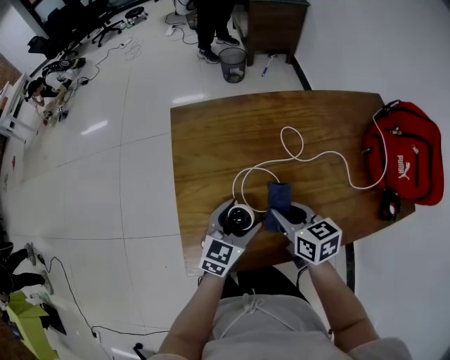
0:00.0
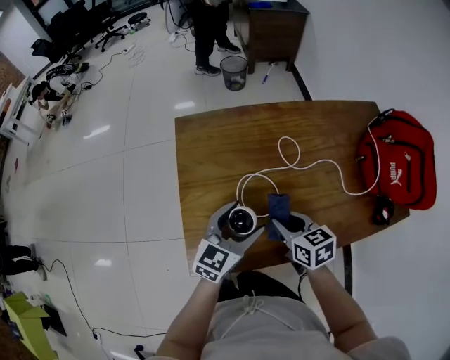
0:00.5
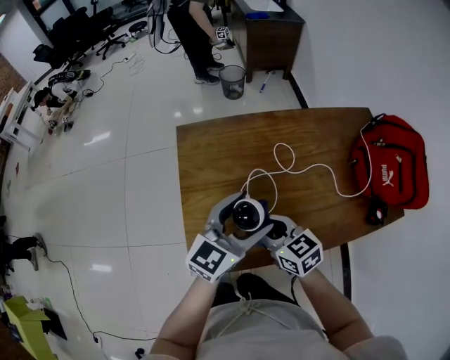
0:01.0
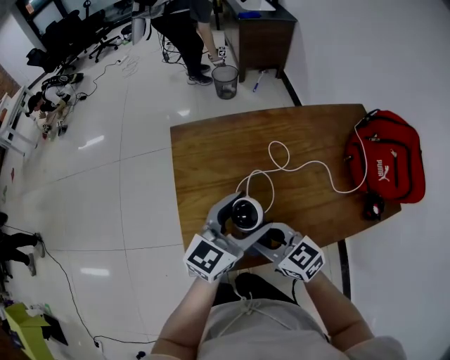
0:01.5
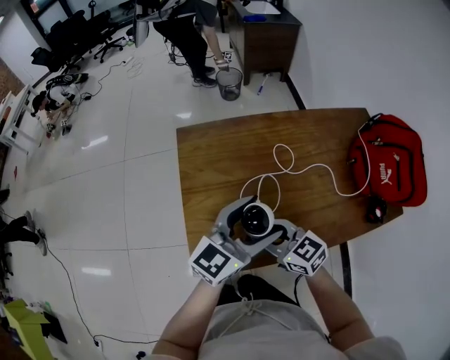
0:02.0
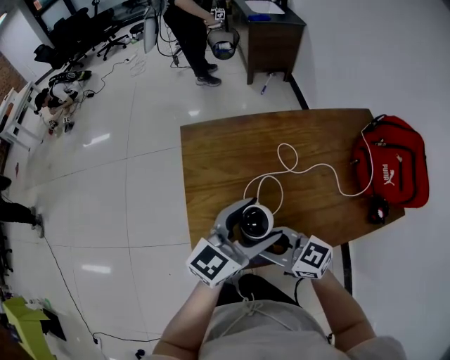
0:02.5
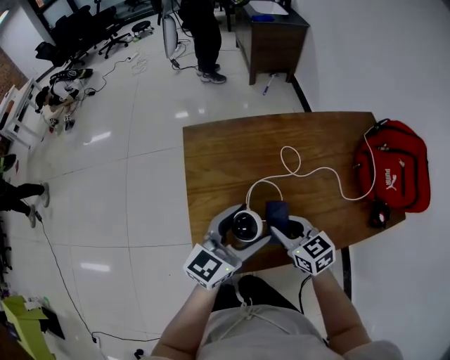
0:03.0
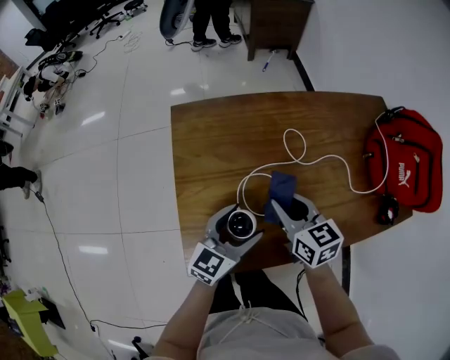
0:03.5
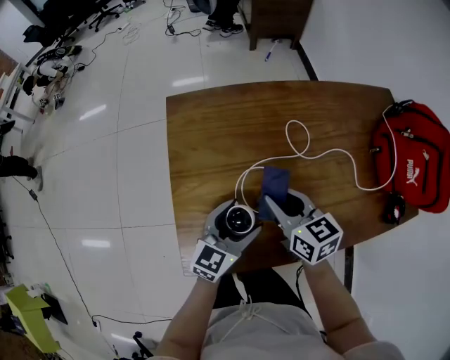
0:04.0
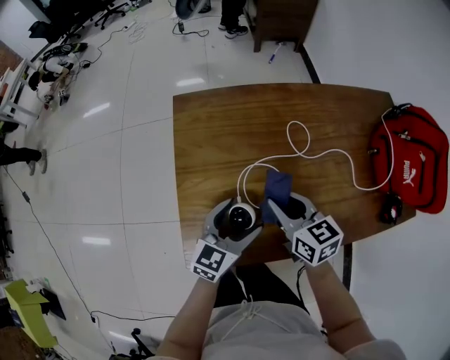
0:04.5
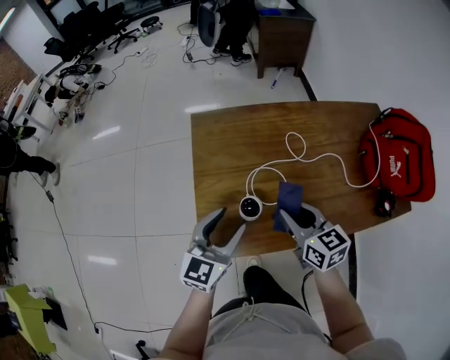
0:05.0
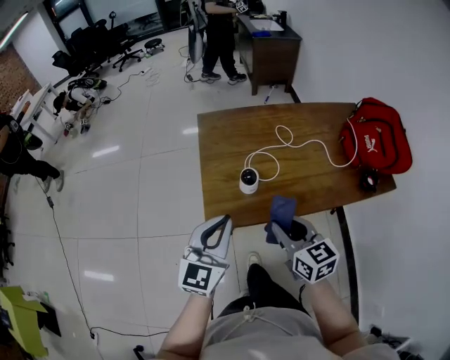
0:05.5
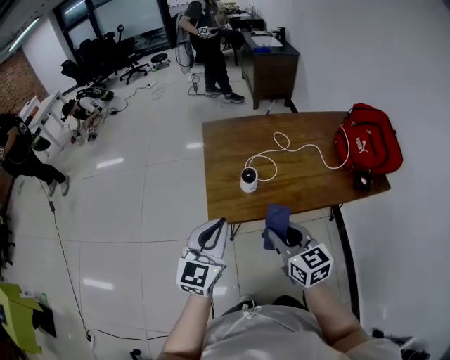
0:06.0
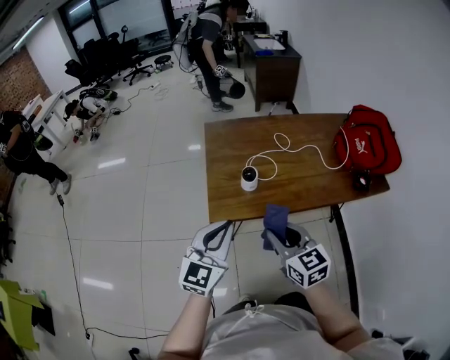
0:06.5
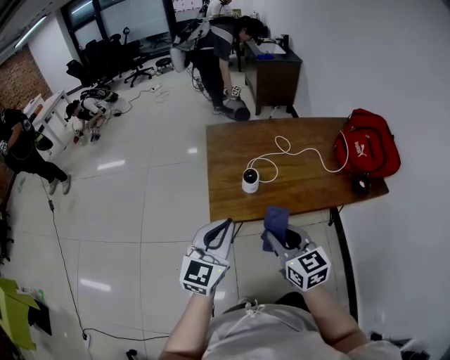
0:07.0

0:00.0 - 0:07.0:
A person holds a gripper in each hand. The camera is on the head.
0:00.0 - 0:02.0: The left gripper is displaced upward by roughly 20 cm, and turns by some 20 degrees. The right gripper heads upward, to the left and backward, covering approximately 10 cm, and changes its angle by roughly 30 degrees.
0:02.0 - 0:03.5: The right gripper is displaced forward and to the right by roughly 10 cm, and rotates roughly 30 degrees. Meanwhile the left gripper heads downward, covering roughly 15 cm.
0:03.5 - 0:05.0: The left gripper travels upward, to the left and backward by some 15 cm. The right gripper heads backward and upward, covering about 10 cm.
0:05.0 - 0:07.0: The right gripper is displaced backward by about 25 cm. The left gripper moves backward and upward, roughly 25 cm, and closes.

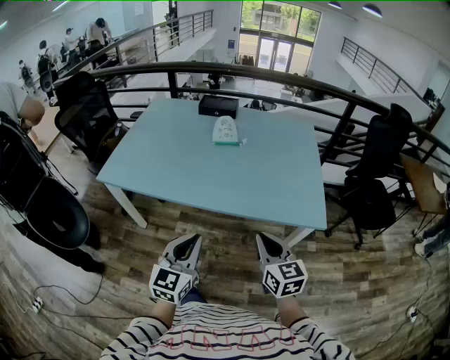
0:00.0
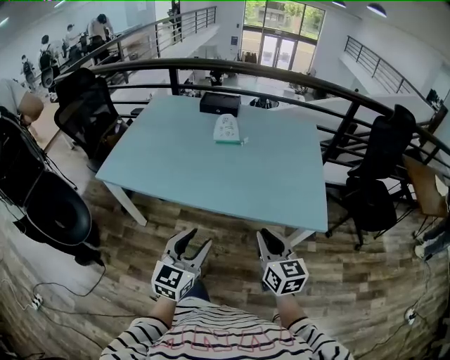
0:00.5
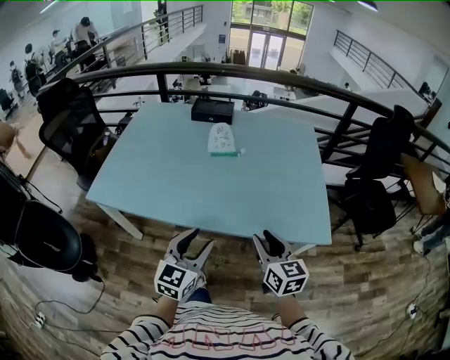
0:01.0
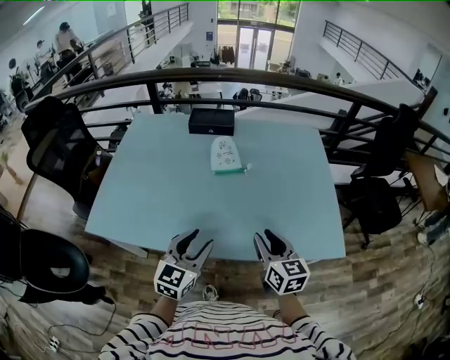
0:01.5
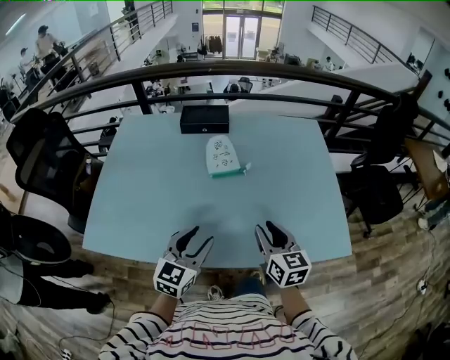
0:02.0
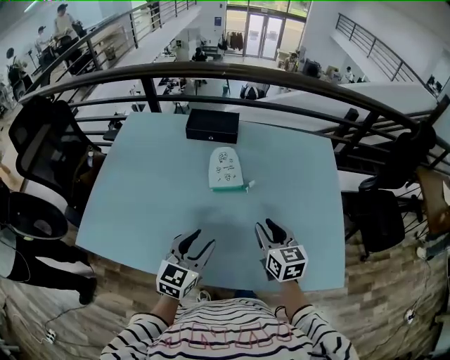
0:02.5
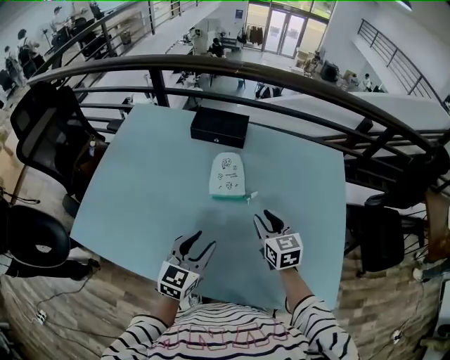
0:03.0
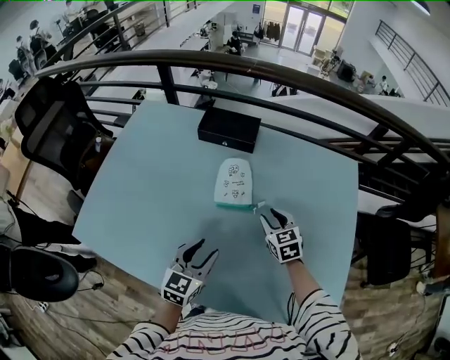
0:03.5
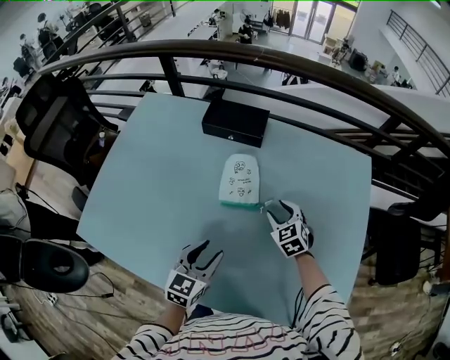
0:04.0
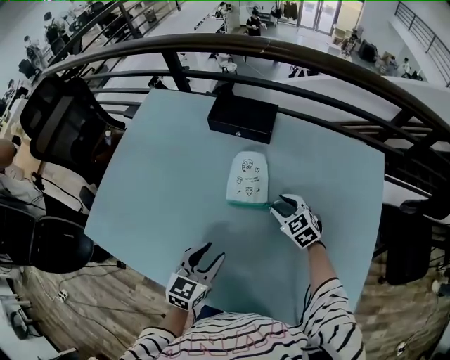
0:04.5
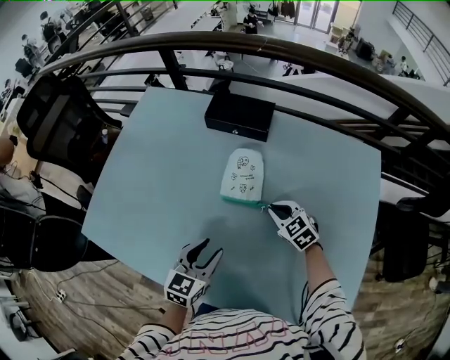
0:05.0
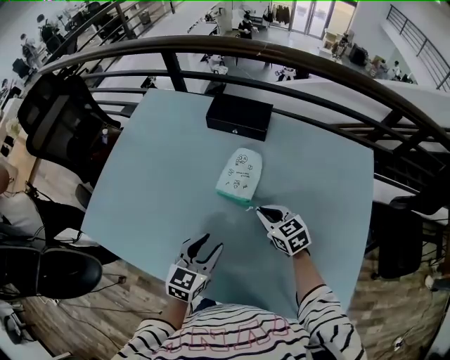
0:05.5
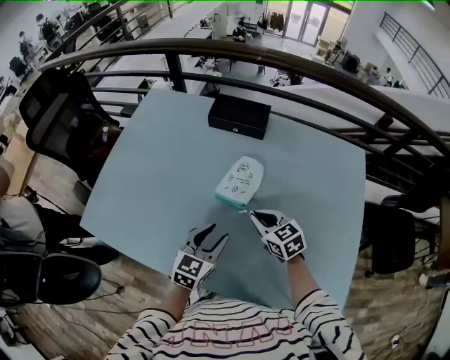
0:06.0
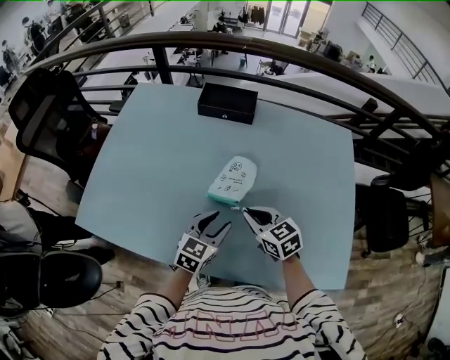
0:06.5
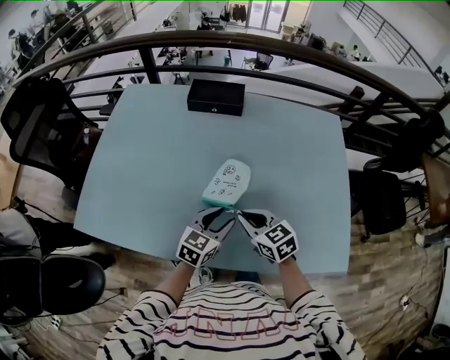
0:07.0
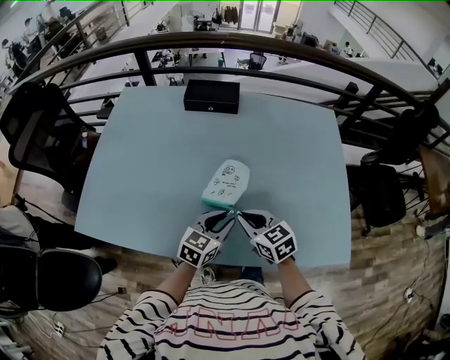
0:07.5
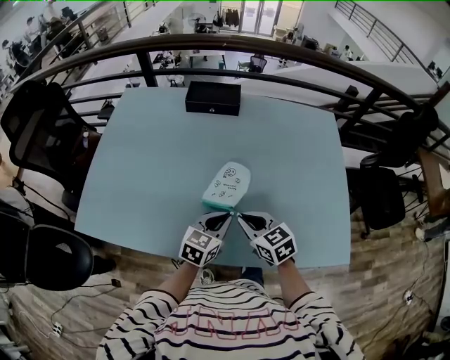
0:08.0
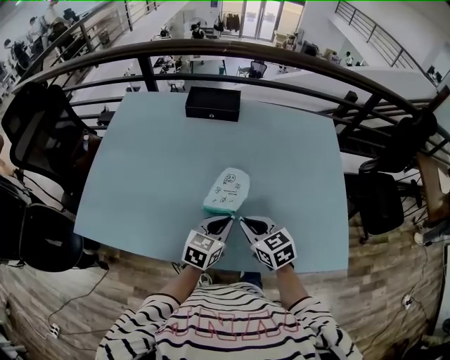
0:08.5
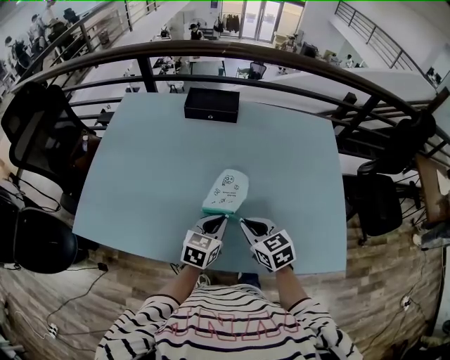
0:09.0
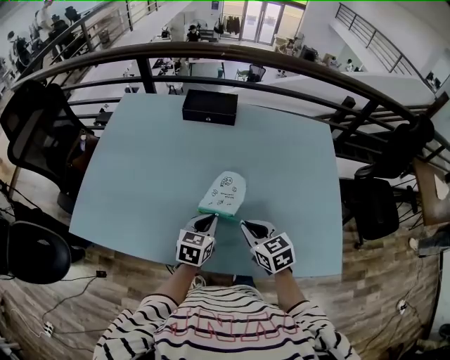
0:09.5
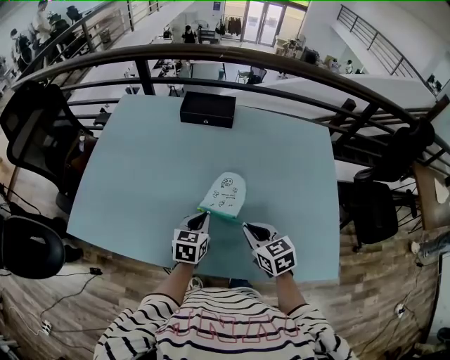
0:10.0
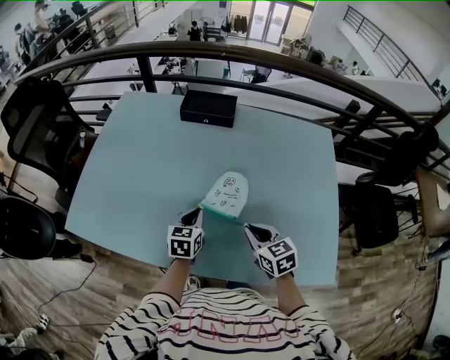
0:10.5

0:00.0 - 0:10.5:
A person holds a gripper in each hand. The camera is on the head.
0:00.0 - 0:02.0: Both grippers move forward, about 30 cm. The right gripper opens its fingers. Meanwhile the left gripper opens its fingers.
0:02.0 - 0:04.0: The left gripper goes approximately 20 cm forward and downward, and changes its angle by approximately 20 degrees. Meanwhile the right gripper travels forward and downward by about 35 cm, and turns by some 50 degrees.
0:04.0 - 0:06.5: The right gripper heads backward, to the left and upward, covering roughly 20 cm, rotates approximately 30 degrees, and closes.
0:06.5 - 0:08.5: The left gripper shifts by some 5 cm, and closes. Meanwhile the right gripper heads backward, covering some 10 cm.
0:08.5 - 0:10.5: The right gripper moves to the right, approximately 5 cm. Meanwhile the left gripper moves forward, roughly 5 cm, and rotates about 20 degrees.

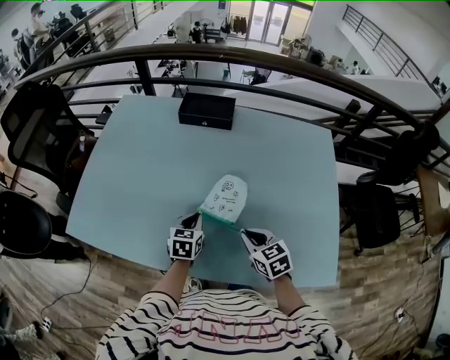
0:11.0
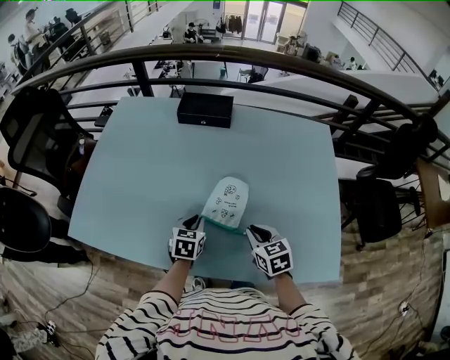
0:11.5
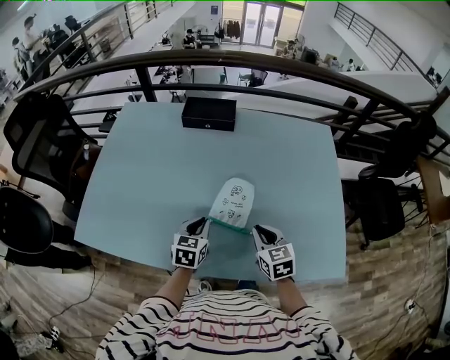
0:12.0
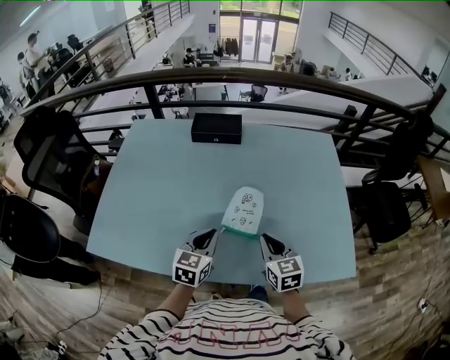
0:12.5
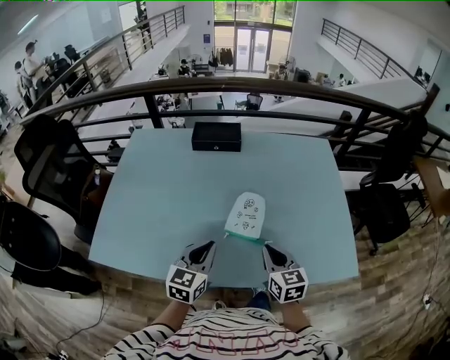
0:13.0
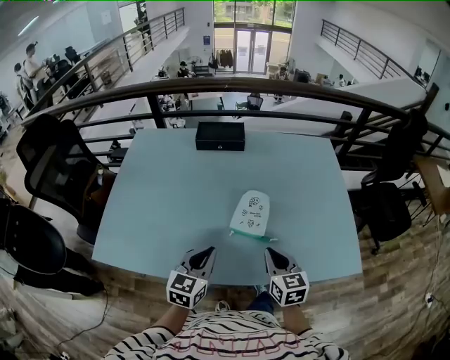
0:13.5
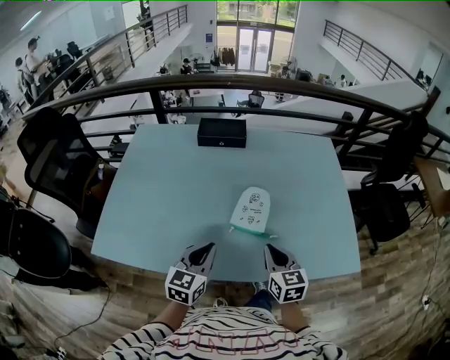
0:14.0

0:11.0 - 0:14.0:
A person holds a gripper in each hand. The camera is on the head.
0:11.0 - 0:12.5: The right gripper is displaced upward by about 5 cm, and swivels roughly 20 degrees. The left gripper moves upward and backward, approximately 10 cm.
0:12.5 - 0:14.0: The grippers both shift backward by roughly 5 cm.

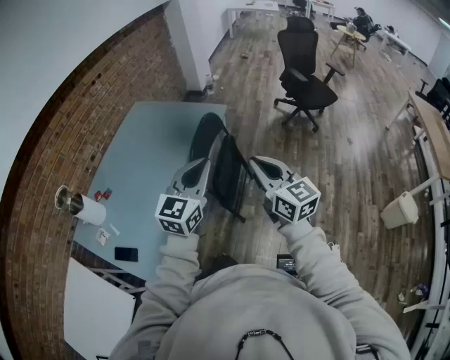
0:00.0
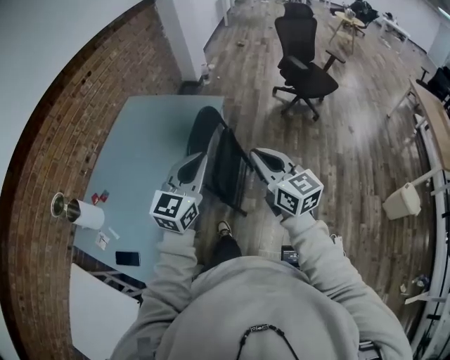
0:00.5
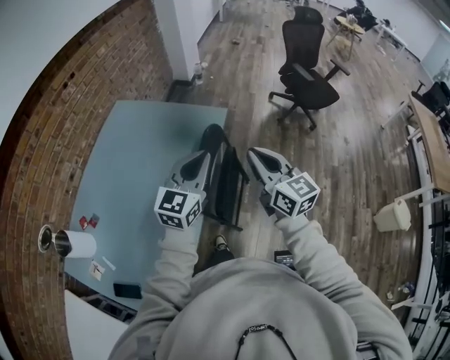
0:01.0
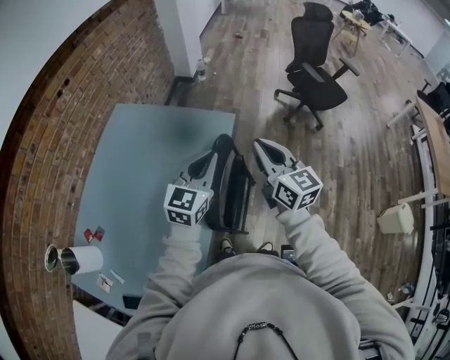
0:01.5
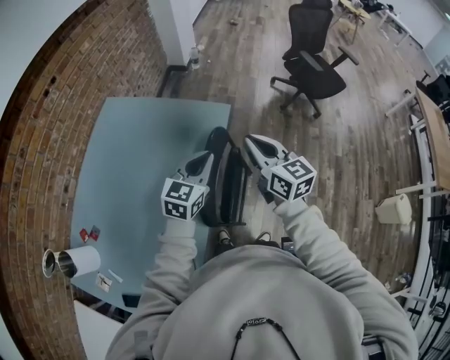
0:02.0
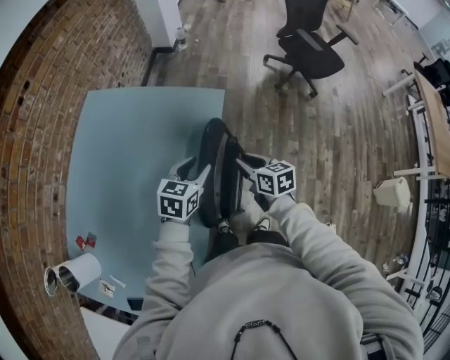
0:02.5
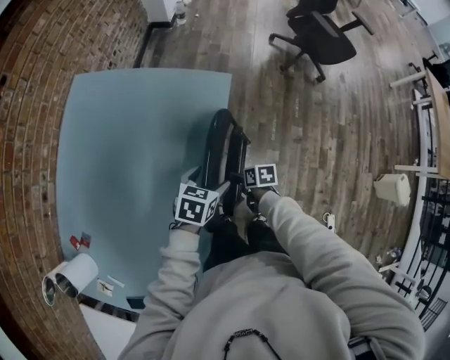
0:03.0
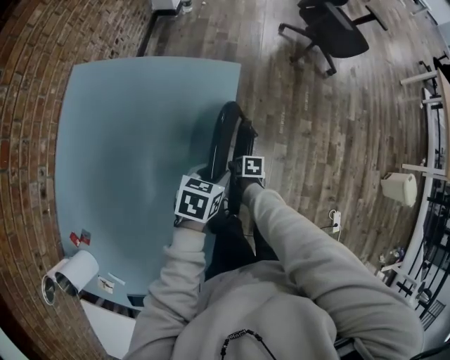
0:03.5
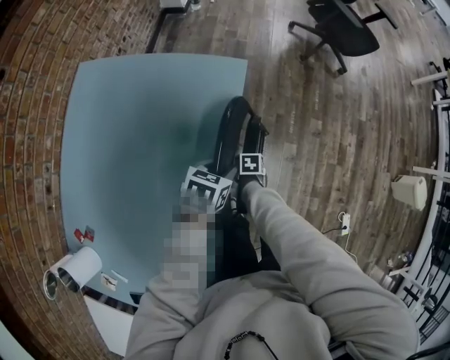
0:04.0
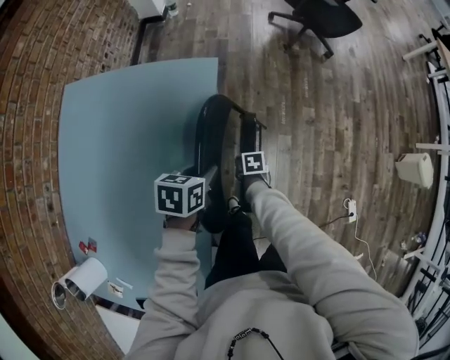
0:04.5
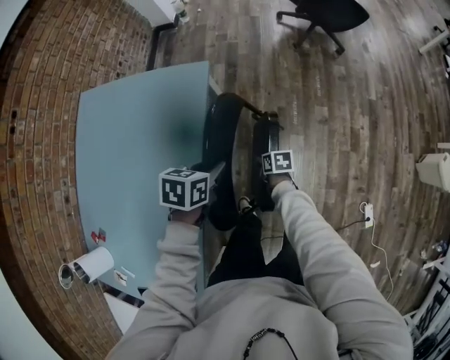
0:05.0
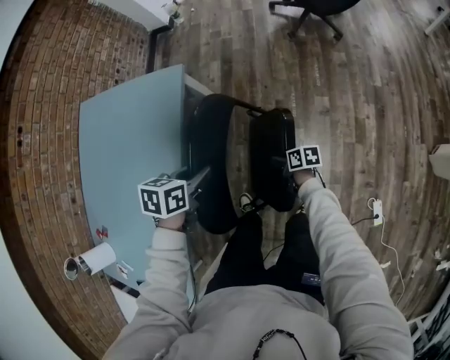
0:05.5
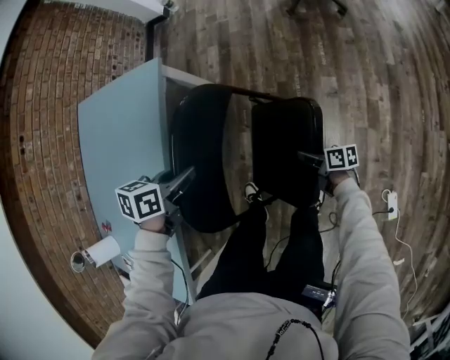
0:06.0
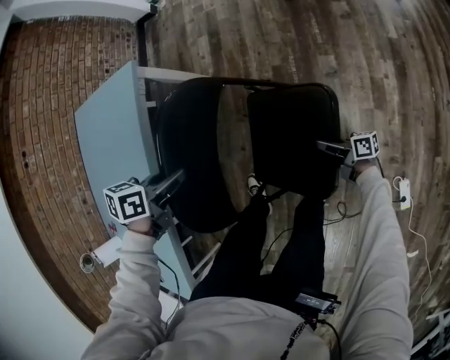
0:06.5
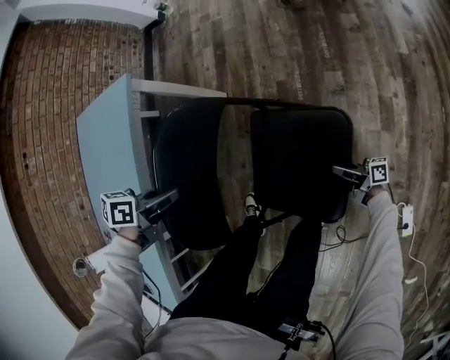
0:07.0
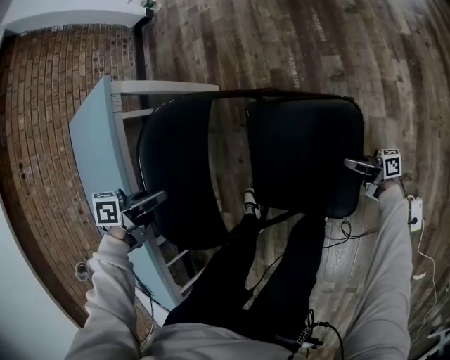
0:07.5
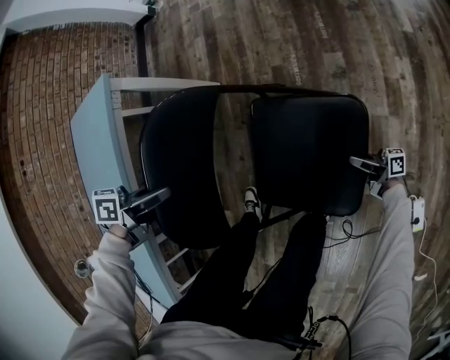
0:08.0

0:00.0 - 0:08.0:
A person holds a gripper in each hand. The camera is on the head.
0:00.0 - 0:02.0: Both grippers move forward, approximately 40 cm.
0:02.0 - 0:04.0: The left gripper is displaced downward by about 25 cm, tilts its fingers about 40 degrees downward, and opens, then closes again; the right gripper goes roughly 50 cm downward, tilts its fingers some 60 degrees downward, and opens its fingers.
0:04.0 - 0:06.0: The left gripper ends up about 25 cm from where it was, while the right gripper shifts by approximately 40 cm, and tilts its fingers approximately 50 degrees upward.
0:06.0 - 0:08.0: Both grippers travel together downward, about 20 cm. The left gripper rotates some 20 degrees; the right gripper tips its fingers upward by roughly 40 degrees.
